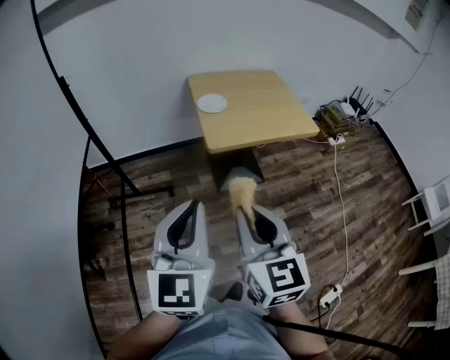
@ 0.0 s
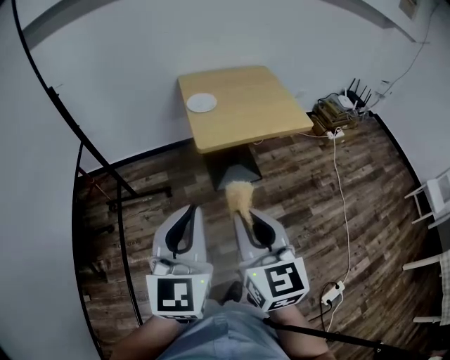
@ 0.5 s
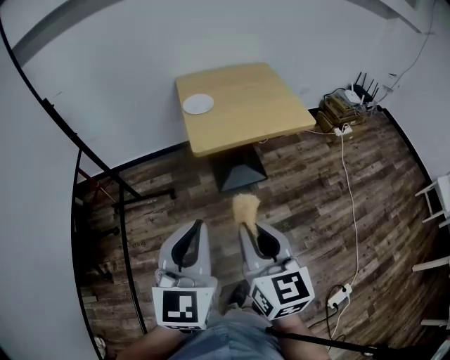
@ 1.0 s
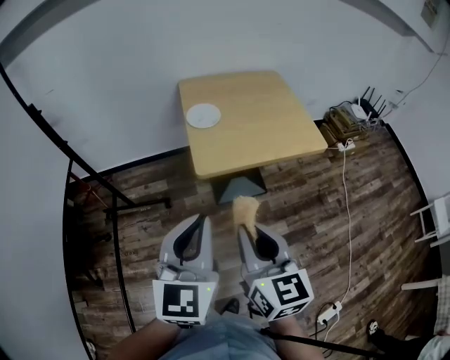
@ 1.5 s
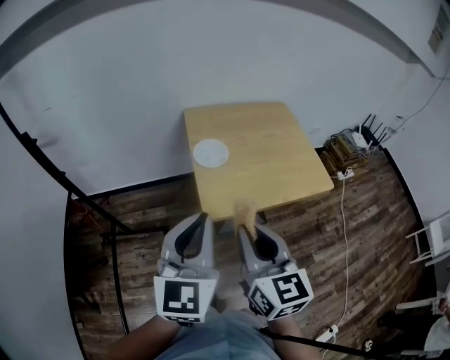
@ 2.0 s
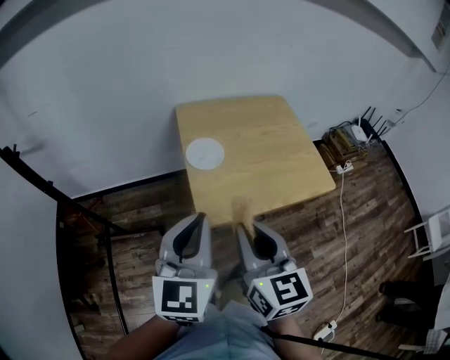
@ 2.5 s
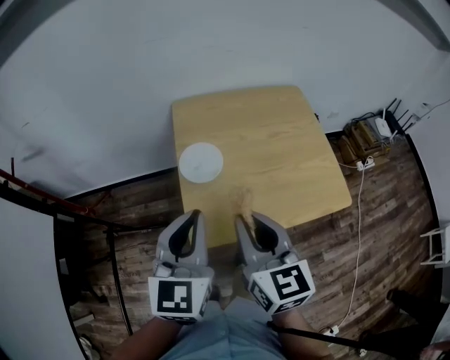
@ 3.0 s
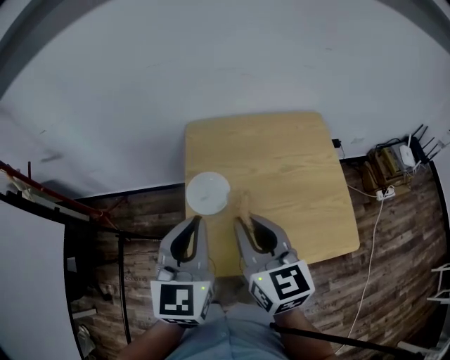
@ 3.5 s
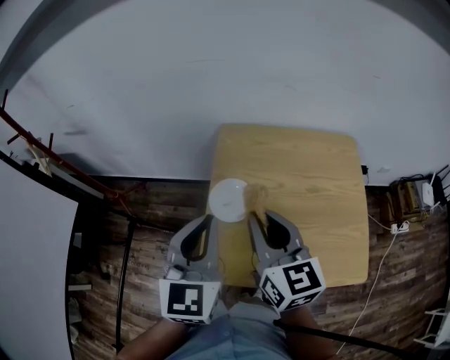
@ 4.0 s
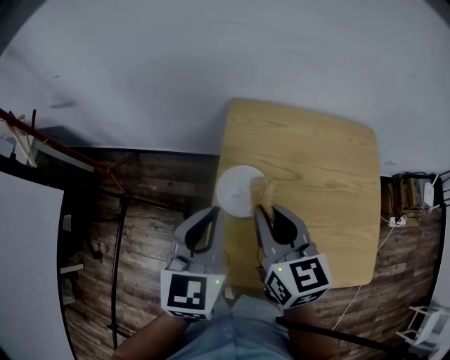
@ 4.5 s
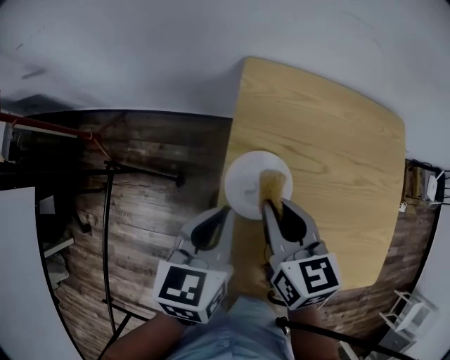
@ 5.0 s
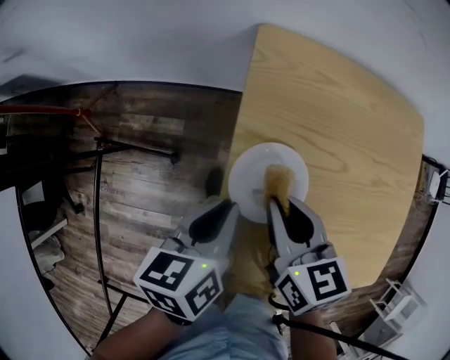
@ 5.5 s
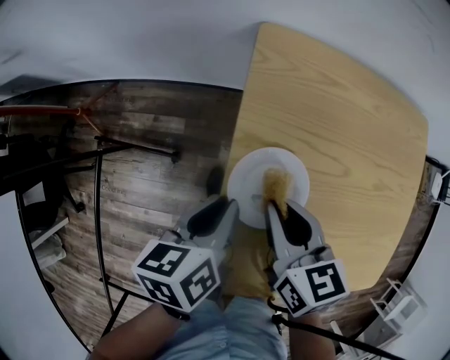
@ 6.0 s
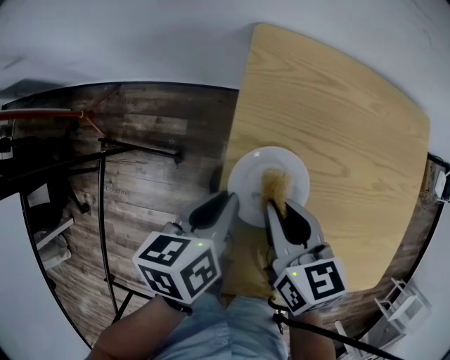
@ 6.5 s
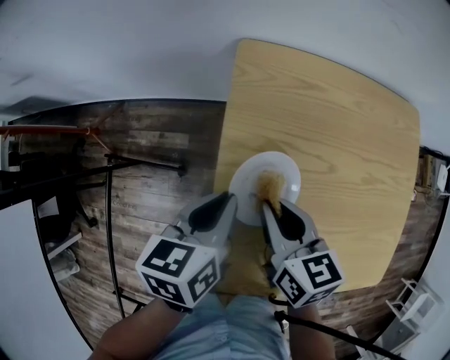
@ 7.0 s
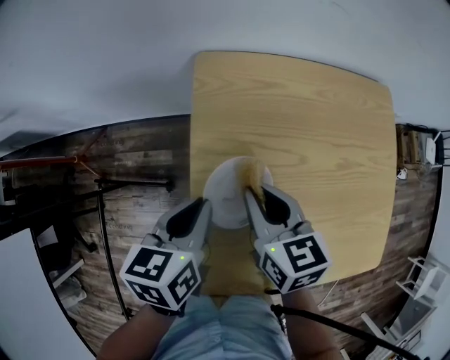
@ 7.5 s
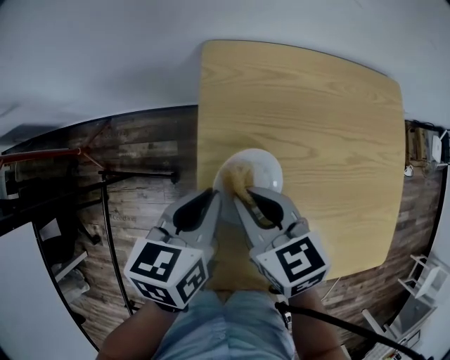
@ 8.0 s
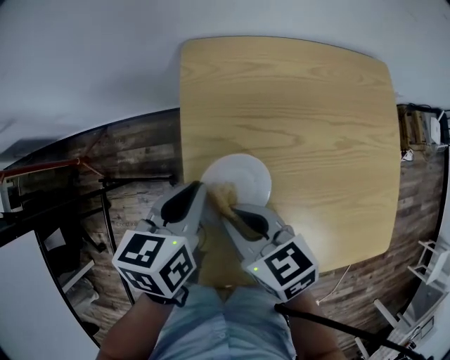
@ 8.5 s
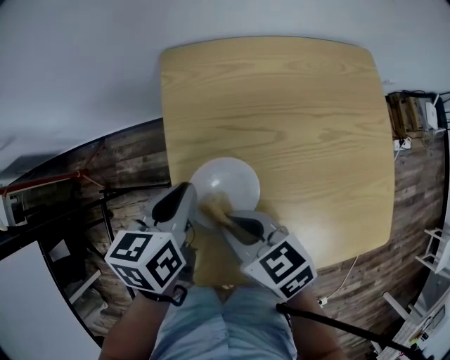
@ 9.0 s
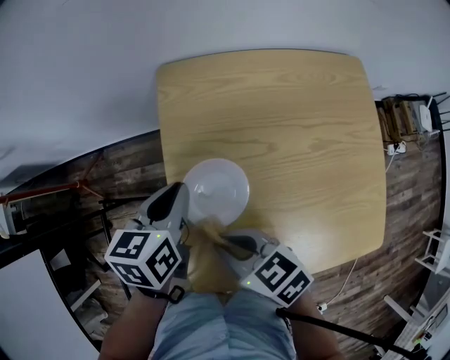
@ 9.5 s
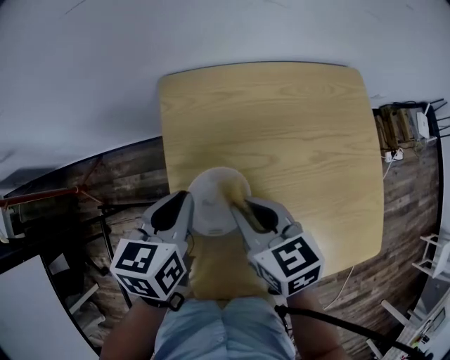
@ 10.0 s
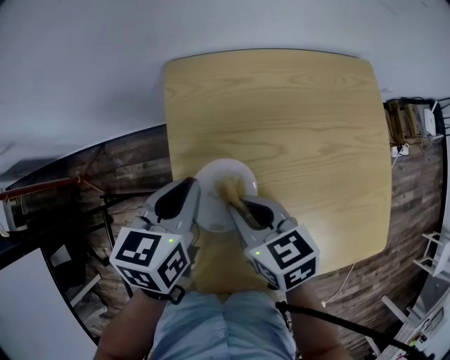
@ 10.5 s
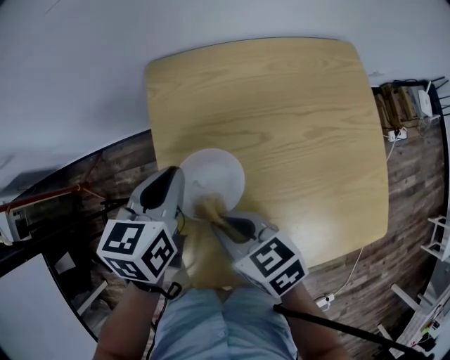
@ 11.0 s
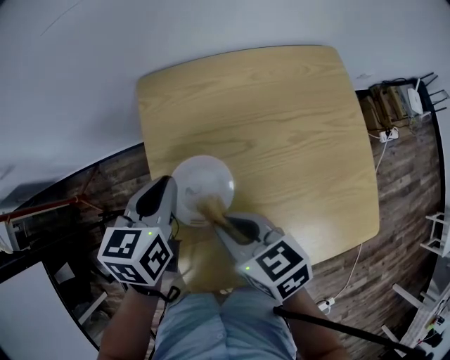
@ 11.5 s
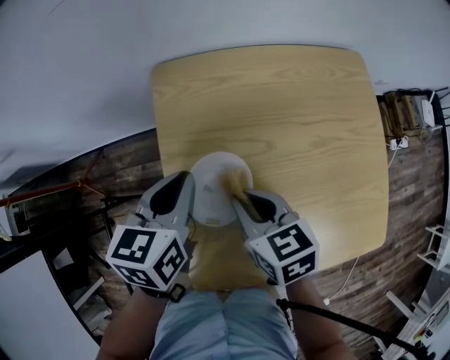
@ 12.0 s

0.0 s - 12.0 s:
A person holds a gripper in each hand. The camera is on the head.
0.0 s - 2.0 s: Both grippers travel together forward, about 25 cm.
2.0 s - 4.0 s: The grippers both shift forward by some 25 cm. The right gripper changes its angle by some 20 degrees, while the left gripper rotates approximately 20 degrees.
4.0 s - 6.0 s: The right gripper shifts approximately 25 cm downward and forward, and points its fingers approximately 30 degrees further downward. The left gripper moves downward, roughly 25 cm, and turns by approximately 60 degrees.
6.0 s - 8.0 s: The left gripper moves upward, some 5 cm, and turns by roughly 20 degrees.
8.0 s - 10.0 s: The right gripper is displaced to the right by about 5 cm, and moves about 10 cm backward and comes back.

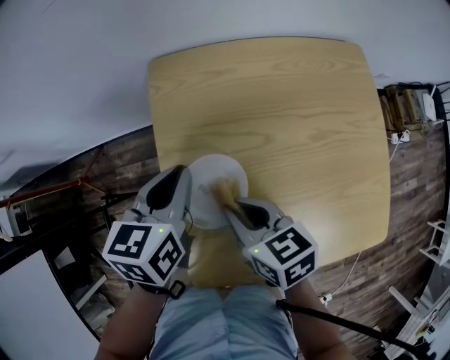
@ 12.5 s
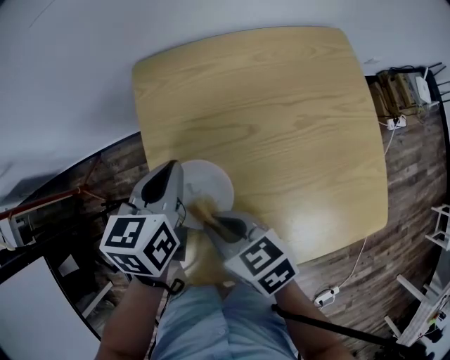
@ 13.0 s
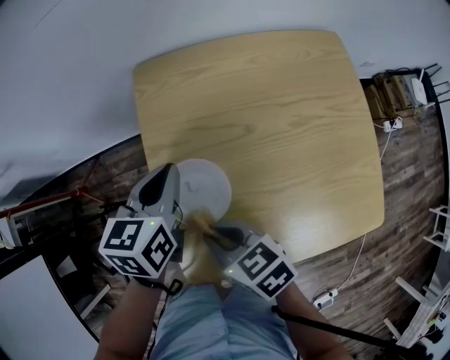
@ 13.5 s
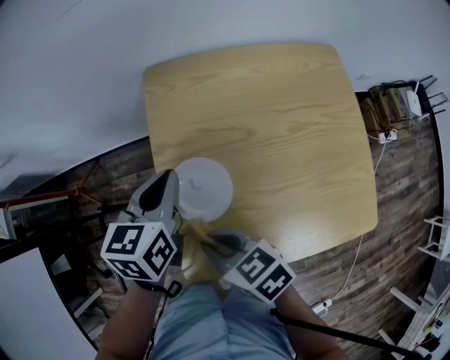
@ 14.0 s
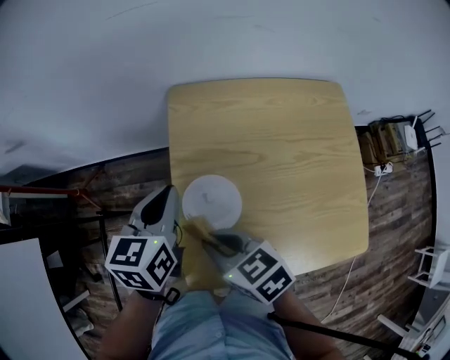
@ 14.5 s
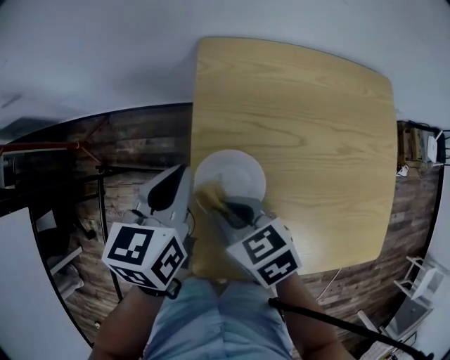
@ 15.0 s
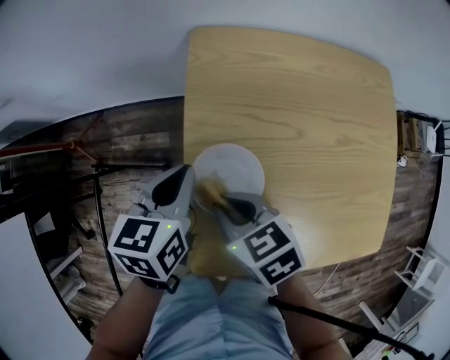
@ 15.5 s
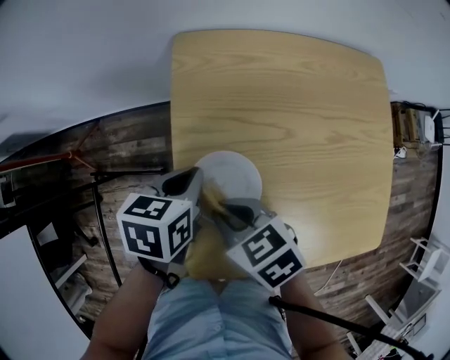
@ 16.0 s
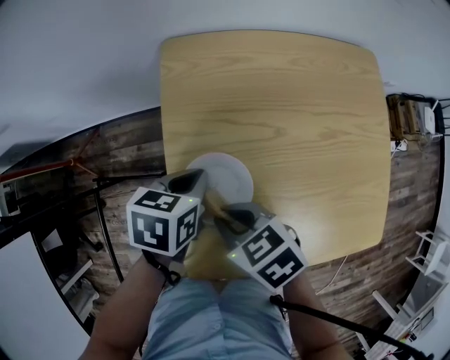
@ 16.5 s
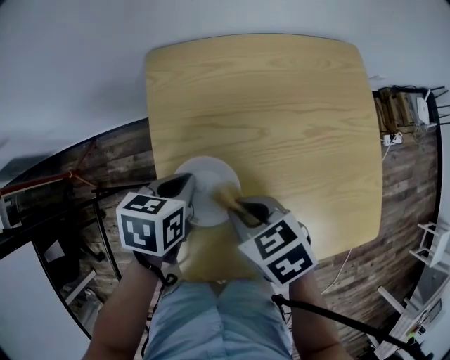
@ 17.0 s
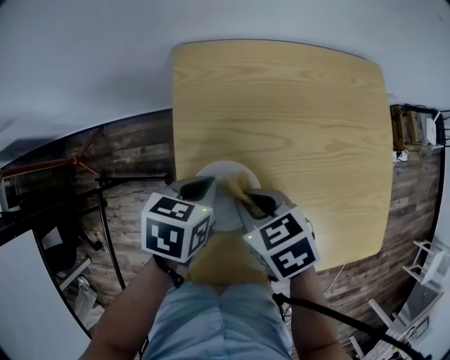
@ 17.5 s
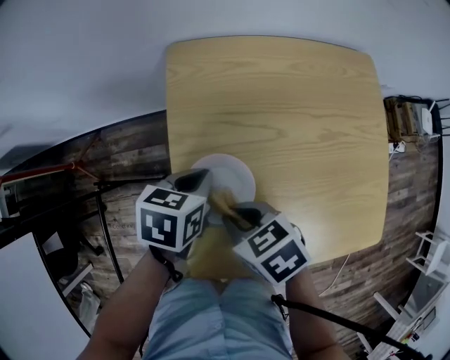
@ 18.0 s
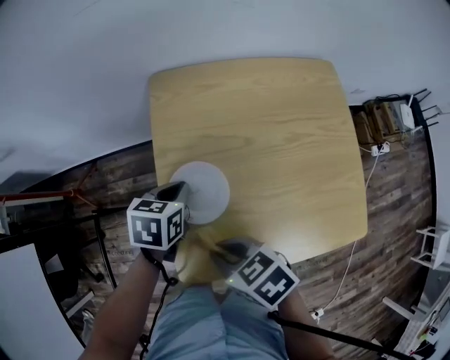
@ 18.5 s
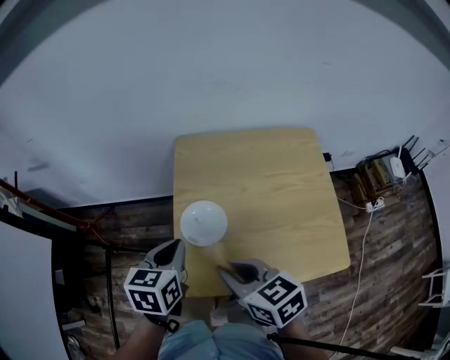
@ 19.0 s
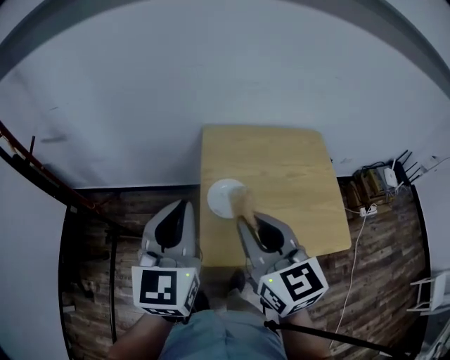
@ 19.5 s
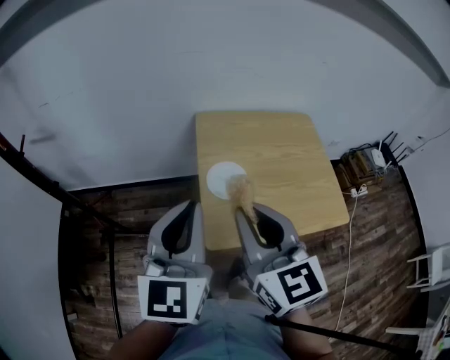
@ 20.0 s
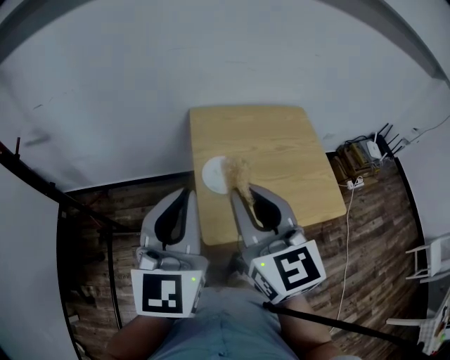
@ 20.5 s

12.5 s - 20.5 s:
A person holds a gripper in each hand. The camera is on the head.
12.5 s - 14.5 s: The right gripper goes approximately 10 cm to the left and upward. Meanwhile the left gripper goes roughly 5 cm upward.
14.5 s - 16.5 s: The left gripper moves downward, approximately 15 cm, and rotates some 30 degrees; the right gripper heads downward, covering some 5 cm.
16.5 s - 18.5 s: The right gripper heads backward, covering some 10 cm.
18.5 s - 20.5 s: The left gripper travels upward and backward by approximately 40 cm, and tips its fingers upward by approximately 50 degrees. The right gripper shifts approximately 30 cm upward, and points its fingers about 40 degrees further upward.

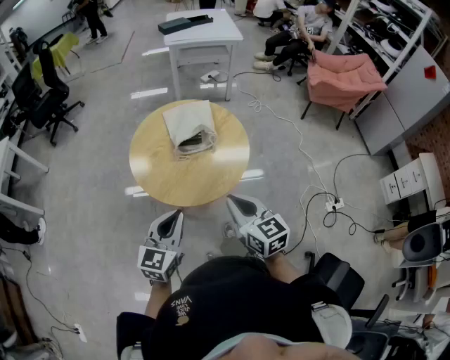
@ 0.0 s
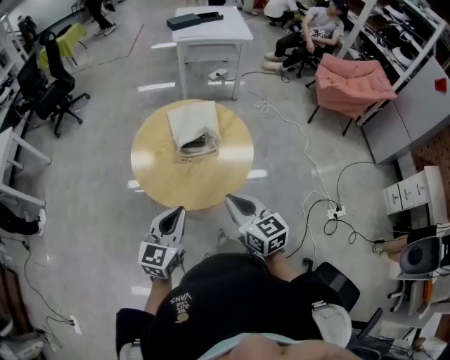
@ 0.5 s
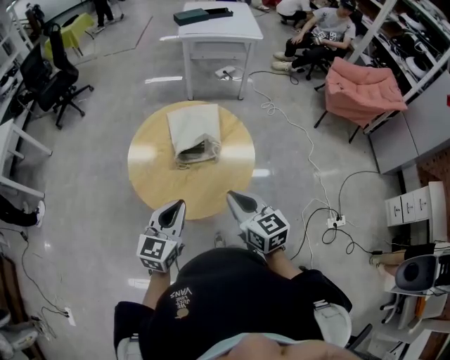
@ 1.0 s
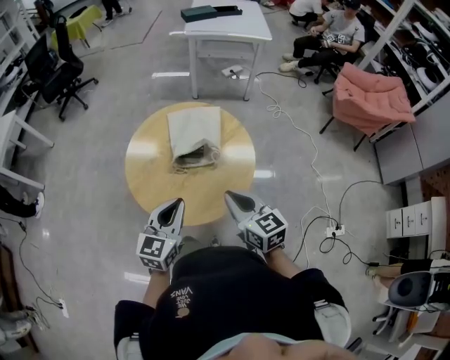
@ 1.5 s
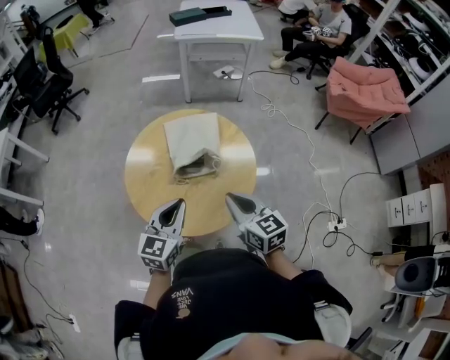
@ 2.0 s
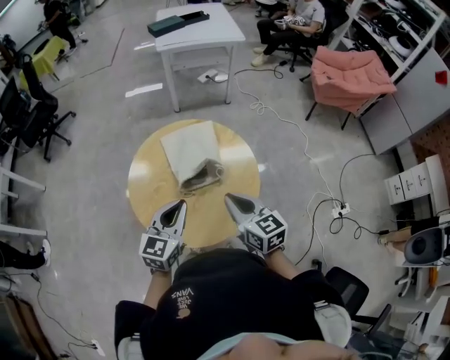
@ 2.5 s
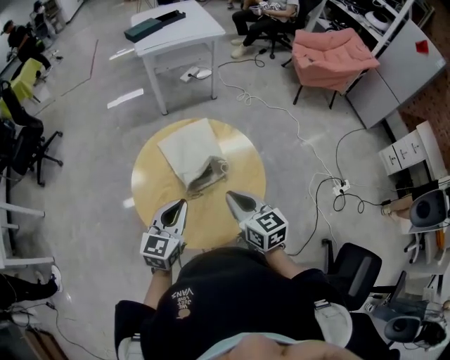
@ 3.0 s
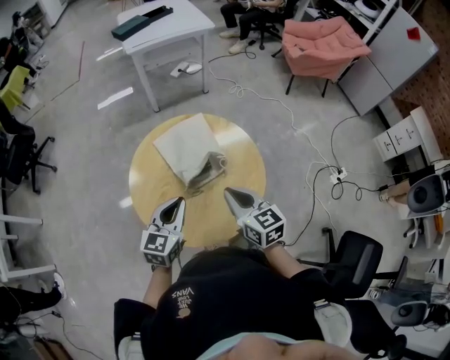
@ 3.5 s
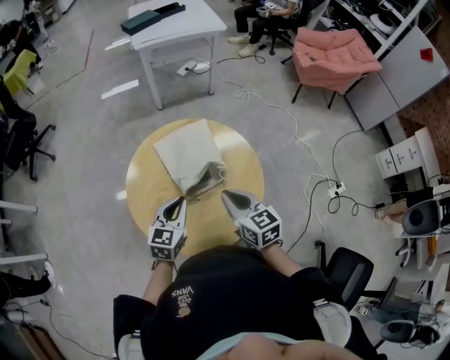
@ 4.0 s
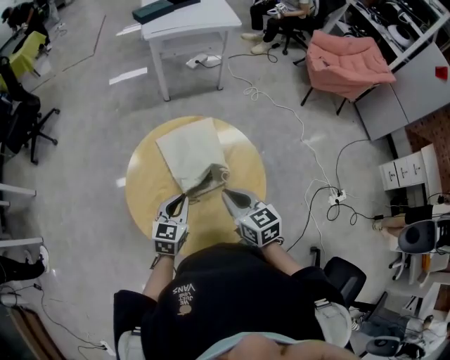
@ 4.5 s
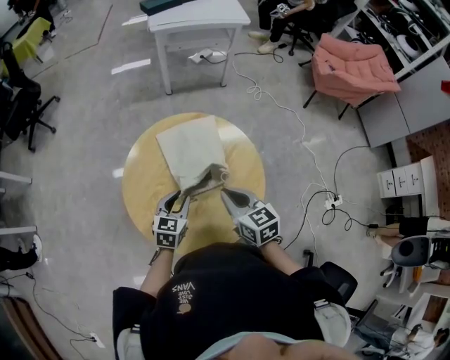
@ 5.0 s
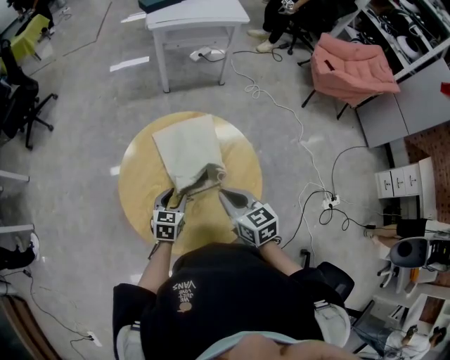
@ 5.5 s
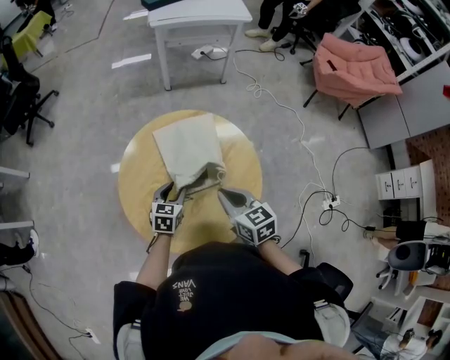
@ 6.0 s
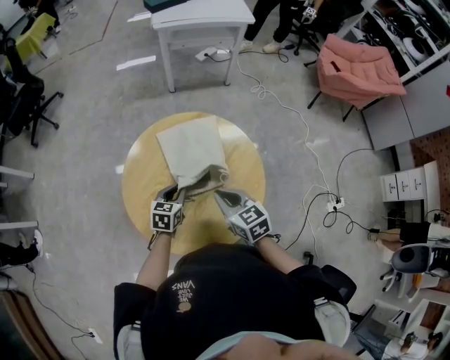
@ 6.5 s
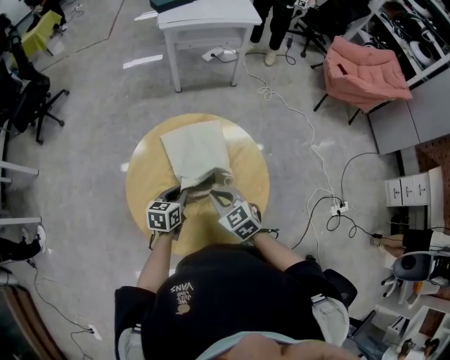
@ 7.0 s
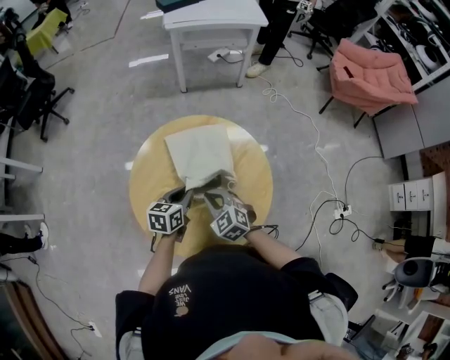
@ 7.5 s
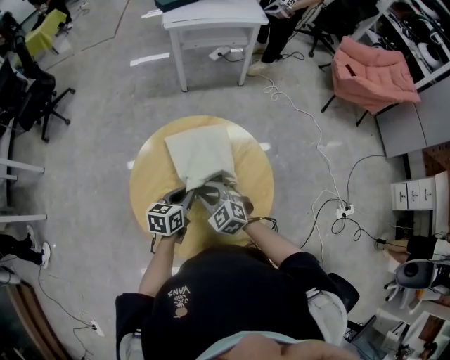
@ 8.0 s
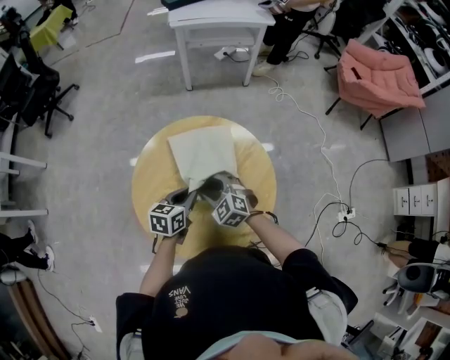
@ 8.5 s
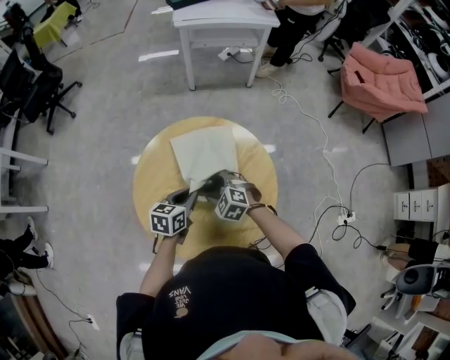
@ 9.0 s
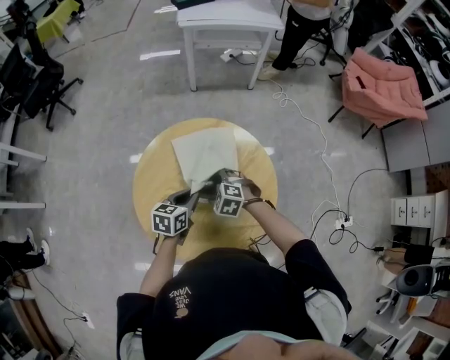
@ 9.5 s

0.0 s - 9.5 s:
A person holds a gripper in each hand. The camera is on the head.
0.0 s - 2.0 s: The two grippers go some 20 cm forward.
2.0 s - 4.0 s: The right gripper goes approximately 10 cm to the left and forward; the left gripper moves forward, downward and to the left, some 15 cm.
4.0 s - 5.5 s: The left gripper moves downward, roughly 10 cm, and opens; the right gripper moves about 5 cm.
5.5 s - 7.5 s: The left gripper ends up roughly 5 cm from where it was, and closes its fingers. The right gripper heads downward and to the left, covering about 10 cm, and rotates about 40 degrees.
7.5 s - 9.5 s: The right gripper travels downward and forward by some 10 cm, rotates some 30 degrees, and opens its fingers.
